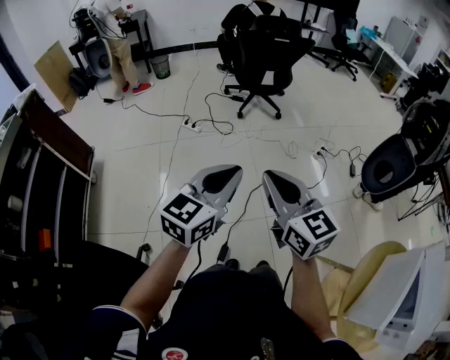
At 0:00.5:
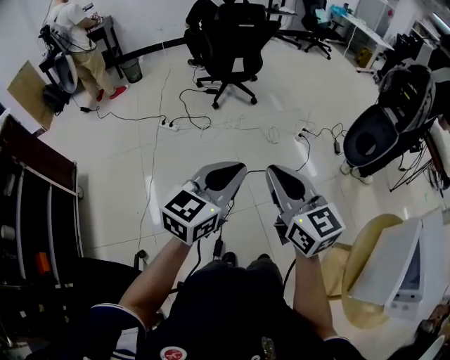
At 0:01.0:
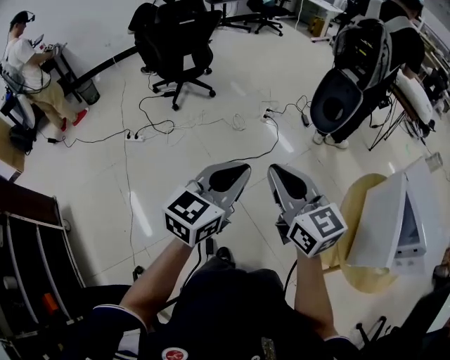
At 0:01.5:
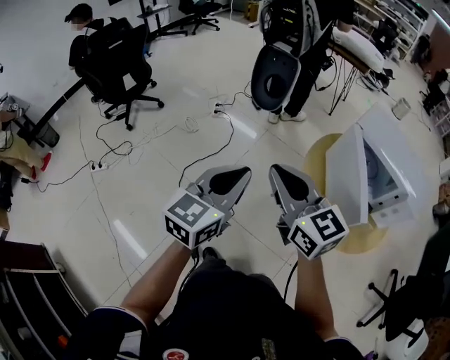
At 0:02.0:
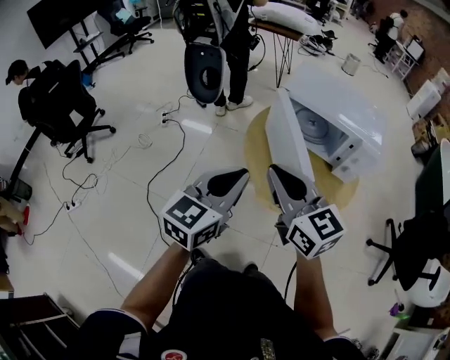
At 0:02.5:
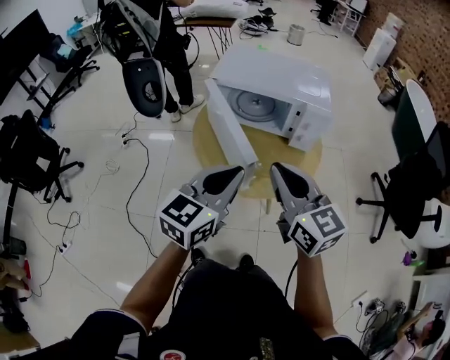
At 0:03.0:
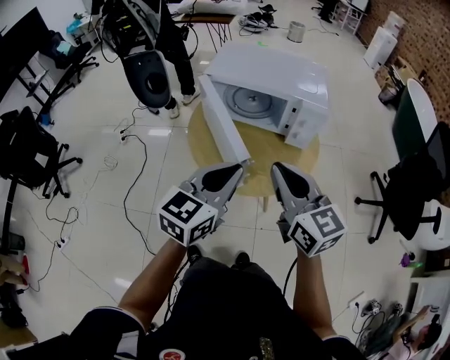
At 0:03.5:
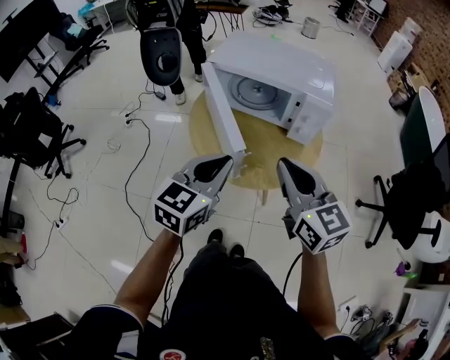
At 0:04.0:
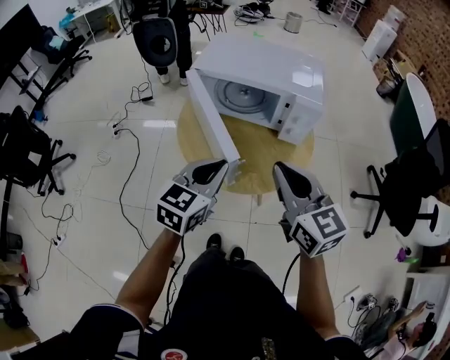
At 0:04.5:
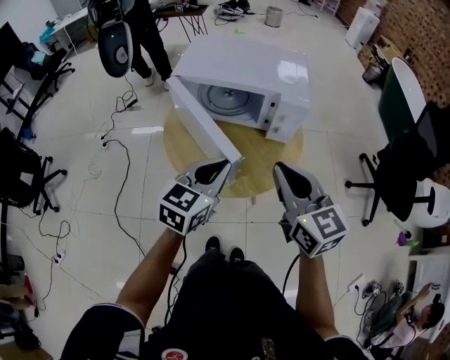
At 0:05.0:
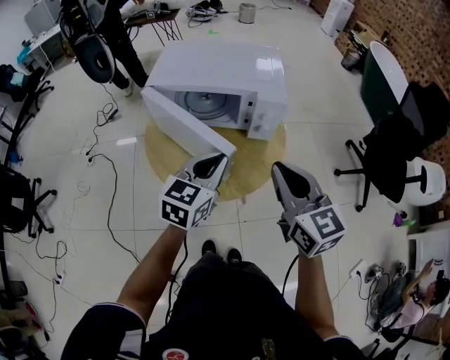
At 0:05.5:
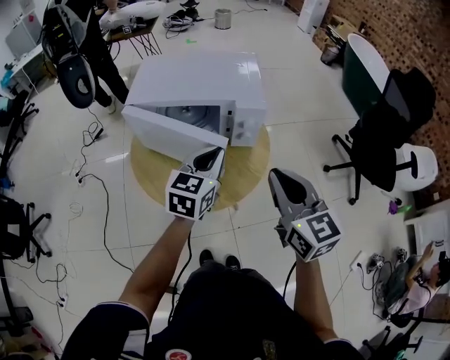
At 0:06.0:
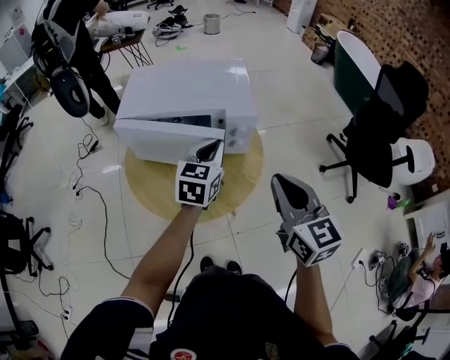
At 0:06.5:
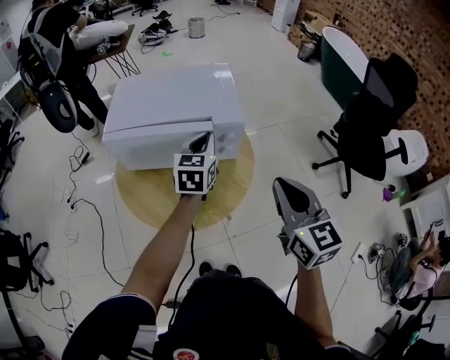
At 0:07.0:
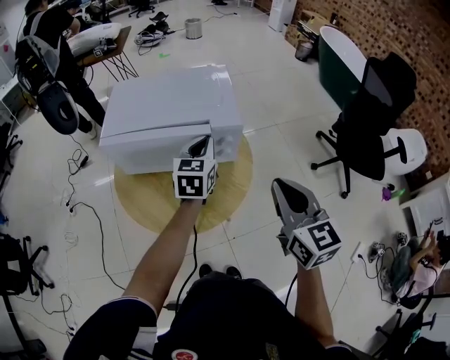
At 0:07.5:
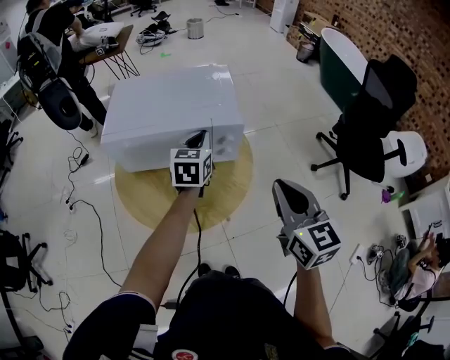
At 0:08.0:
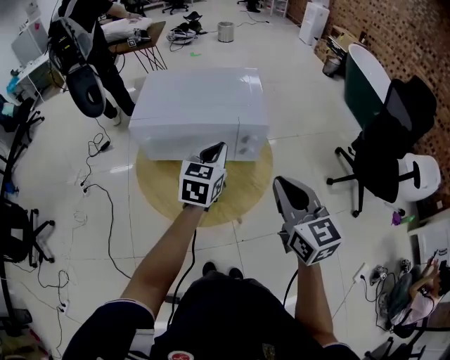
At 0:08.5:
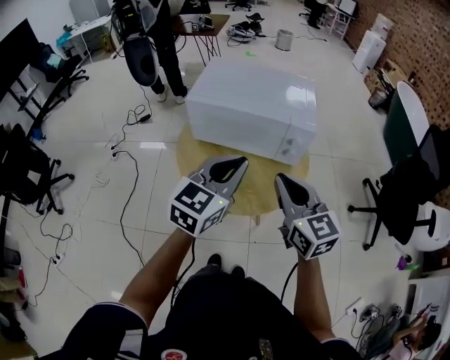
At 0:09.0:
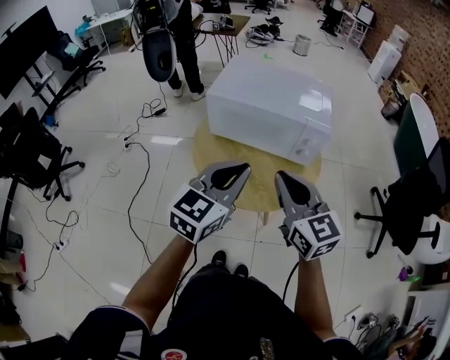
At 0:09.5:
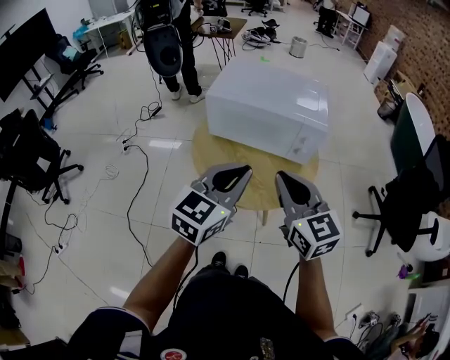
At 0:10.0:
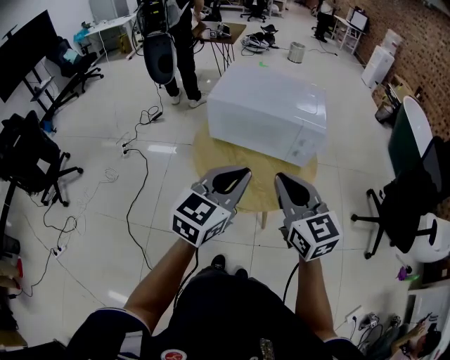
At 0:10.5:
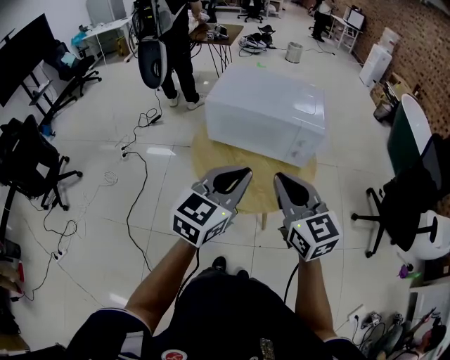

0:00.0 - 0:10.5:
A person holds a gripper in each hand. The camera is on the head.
0:00.0 - 0:02.0: Both grippers are carried approximately 50 cm. The left gripper swivels roughly 60 degrees; the right gripper rotates about 60 degrees.
0:02.0 - 0:04.0: The right gripper heads to the right, covering about 20 cm; the left gripper moves to the right and downward, some 15 cm.
0:04.0 - 0:06.5: The right gripper shifts some 15 cm to the right, and swivels approximately 30 degrees. Meanwhile the left gripper heads forward and to the right, covering some 25 cm.
0:06.5 - 0:08.5: The left gripper is displaced backward, upward and to the left by some 20 cm; the right gripper moves to the left, approximately 15 cm, and swivels roughly 20 degrees.
0:08.5 - 0:10.5: The left gripper heads backward, covering some 5 cm, while the right gripper ends up approximately 5 cm from where it was.

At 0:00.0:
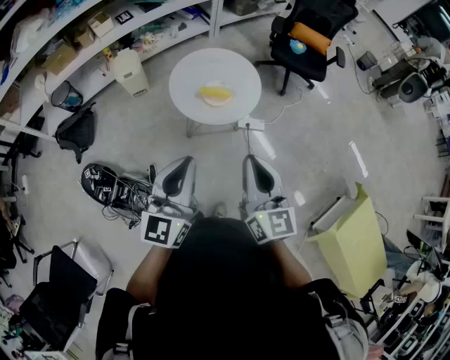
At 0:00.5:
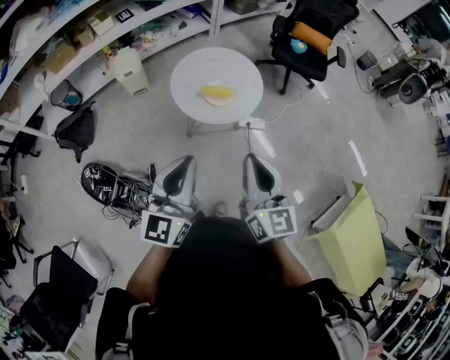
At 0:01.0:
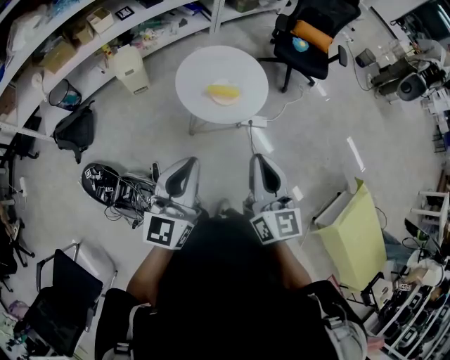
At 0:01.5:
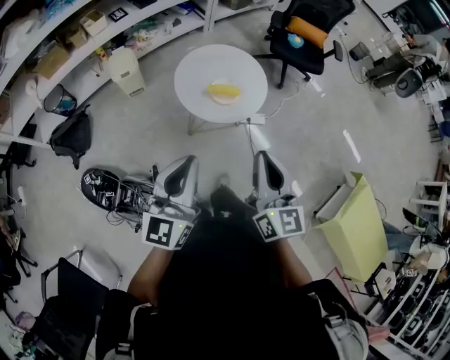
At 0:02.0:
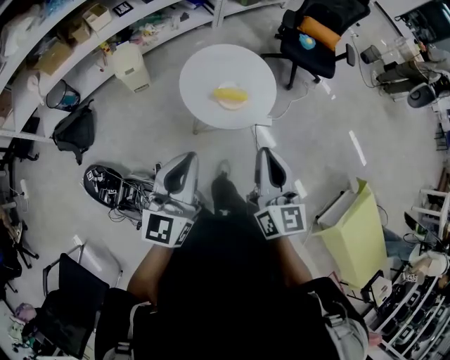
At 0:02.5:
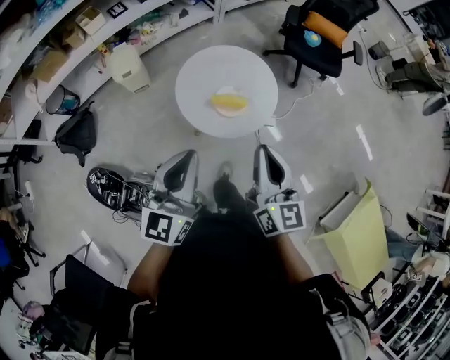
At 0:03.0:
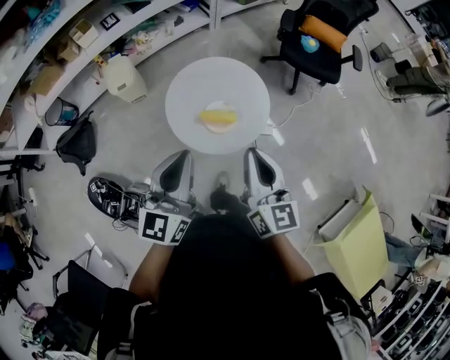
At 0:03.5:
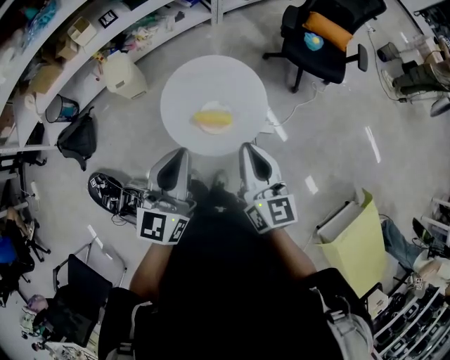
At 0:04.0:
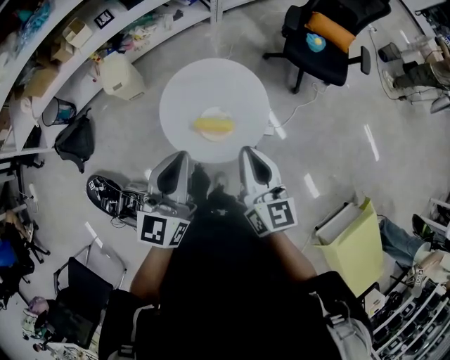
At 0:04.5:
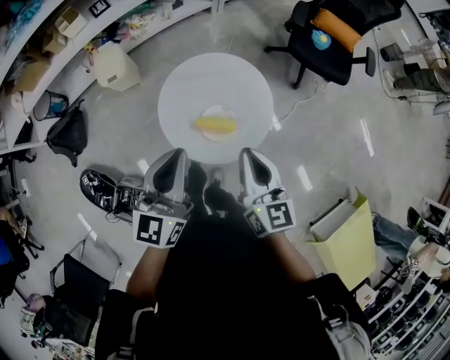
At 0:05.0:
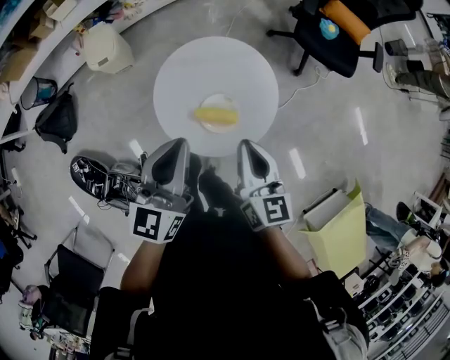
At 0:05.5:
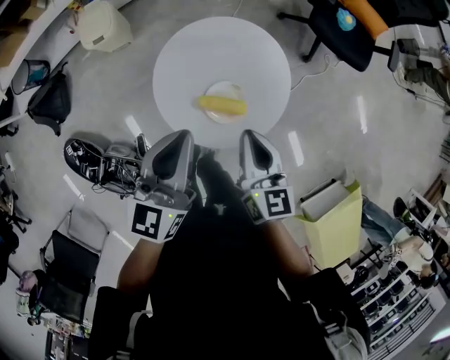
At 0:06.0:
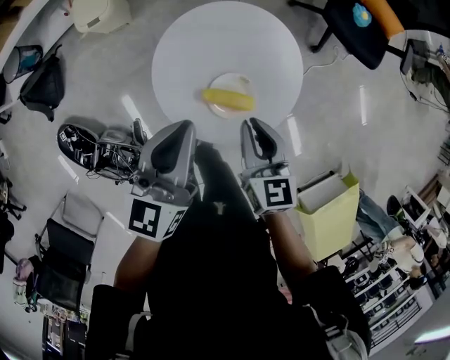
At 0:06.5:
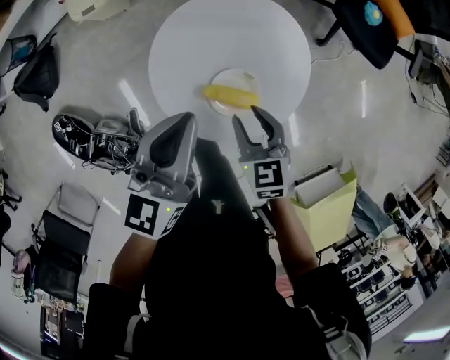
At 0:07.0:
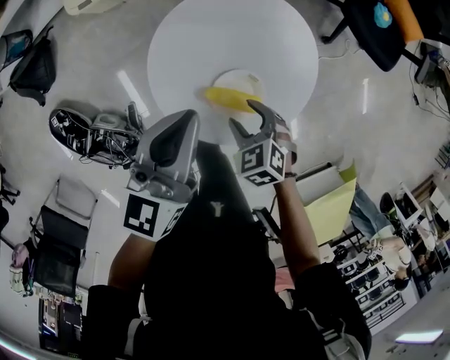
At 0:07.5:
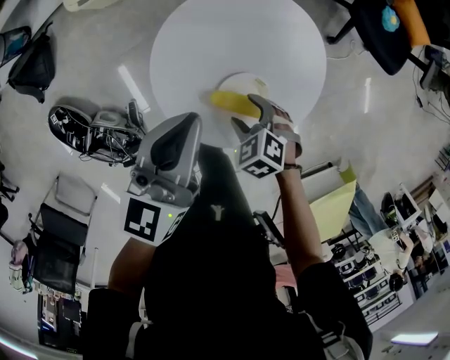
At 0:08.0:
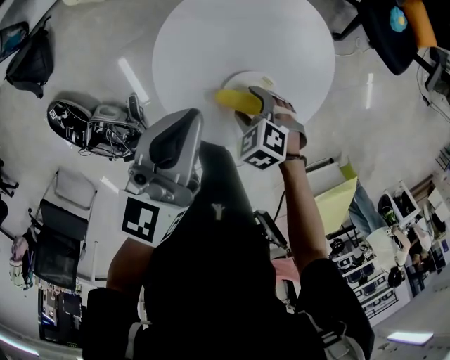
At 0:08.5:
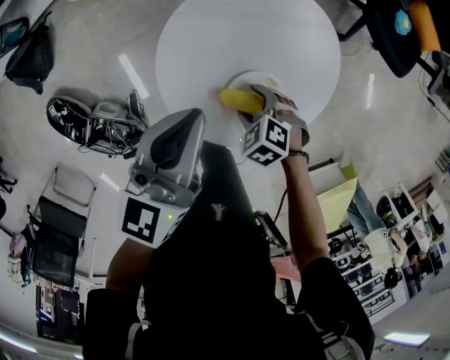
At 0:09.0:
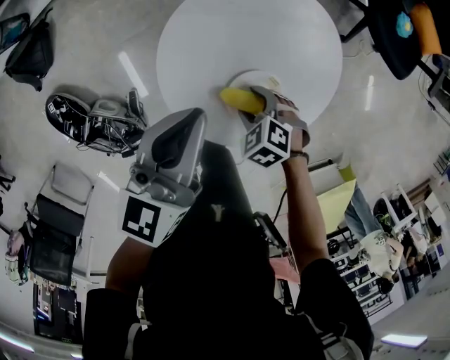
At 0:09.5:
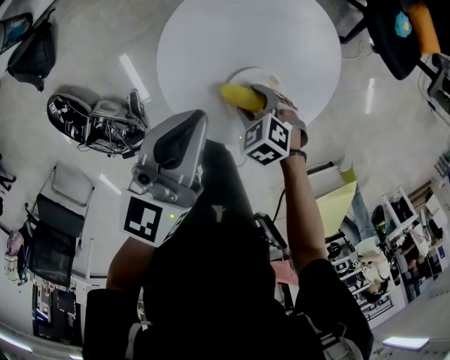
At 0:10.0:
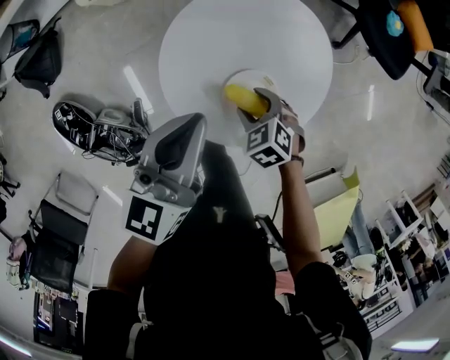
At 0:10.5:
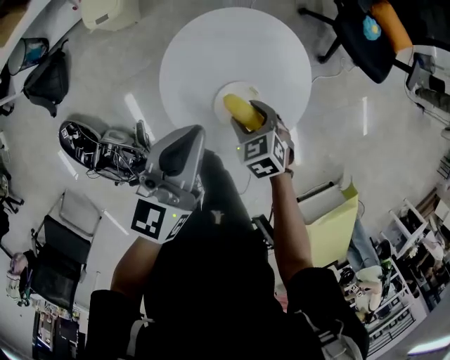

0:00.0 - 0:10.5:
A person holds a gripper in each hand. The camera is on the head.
0:00.0 - 0:02.0: The right gripper goes some 10 cm forward and to the left; the left gripper heads to the left and forward, covering approximately 10 cm.
0:02.0 - 0:04.0: The left gripper heads forward and to the right, covering roughly 25 cm. The right gripper is displaced forward by about 20 cm.
0:04.0 - 0:06.5: The left gripper moves downward and forward, some 20 cm, while the right gripper heads downward, covering approximately 25 cm, tilts its fingers about 40 degrees downward, and opens.
0:06.5 - 0:08.5: The left gripper moves downward, some 5 cm. Meanwhile the right gripper is displaced downward by some 15 cm, points its fingers about 30 degrees further downward, and opens.
0:08.5 - 0:10.5: Both grippers travel together upward, some 10 cm. The right gripper turns by roughly 30 degrees.

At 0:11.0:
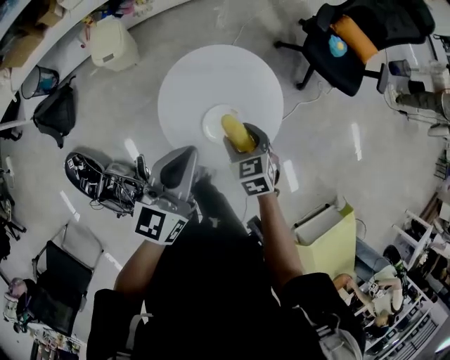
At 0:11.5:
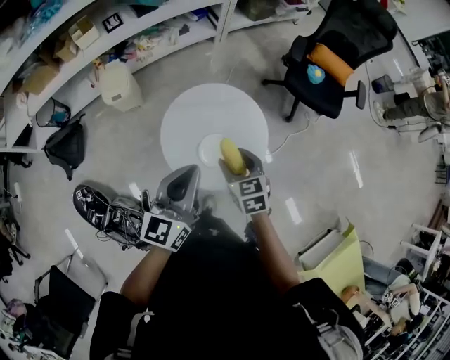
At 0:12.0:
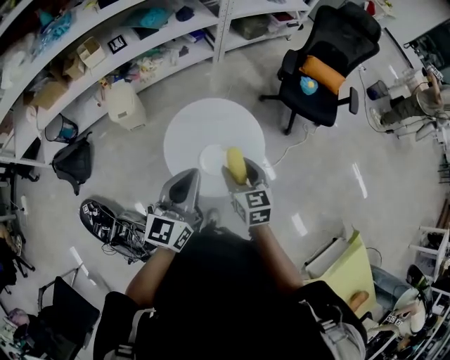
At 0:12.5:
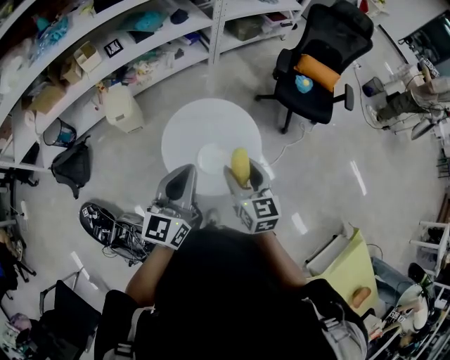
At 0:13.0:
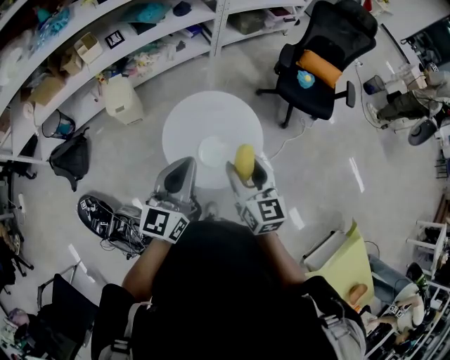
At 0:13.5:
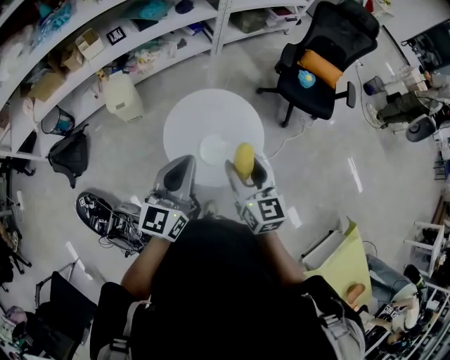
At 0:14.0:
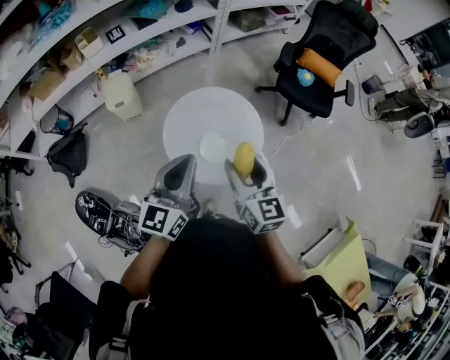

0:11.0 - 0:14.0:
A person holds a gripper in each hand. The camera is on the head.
0:11.0 - 0:12.5: The right gripper shifts some 20 cm upward, and points its fingers some 30 degrees further upward. Meanwhile the left gripper travels upward by some 10 cm.
0:12.5 - 0:14.0: The grippers stay close to where they were, moving slightly.

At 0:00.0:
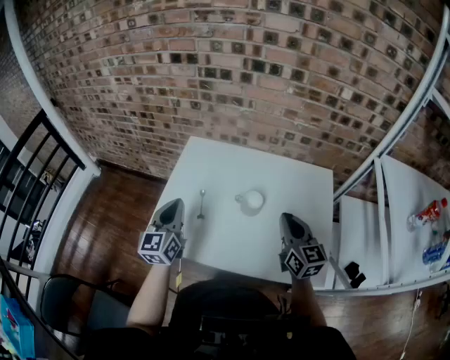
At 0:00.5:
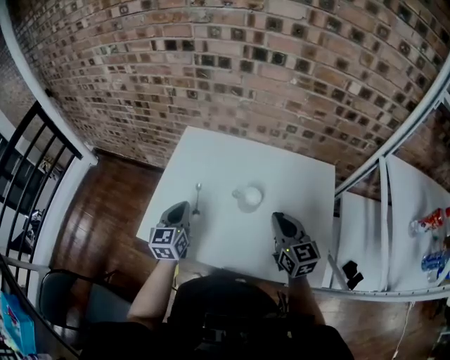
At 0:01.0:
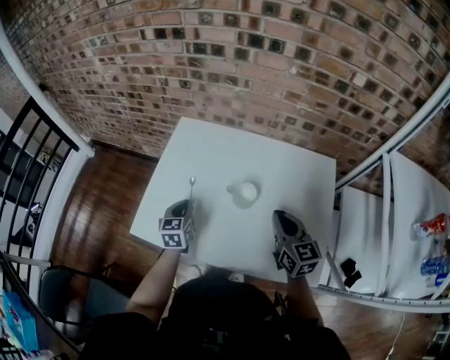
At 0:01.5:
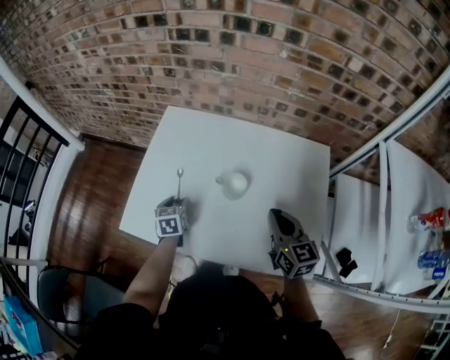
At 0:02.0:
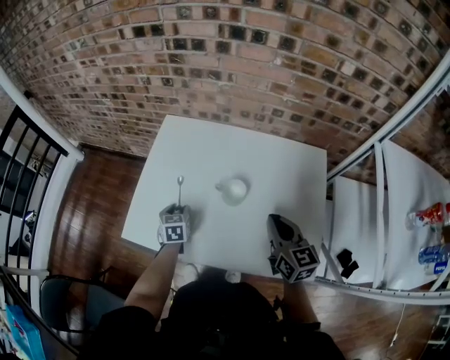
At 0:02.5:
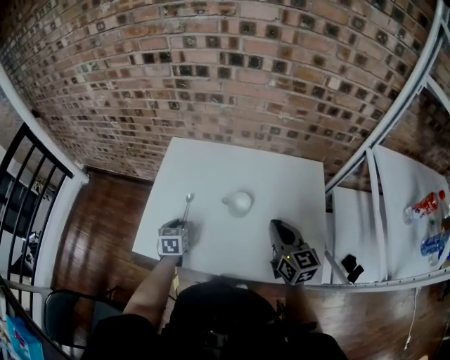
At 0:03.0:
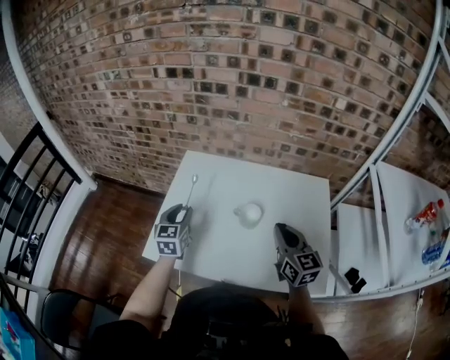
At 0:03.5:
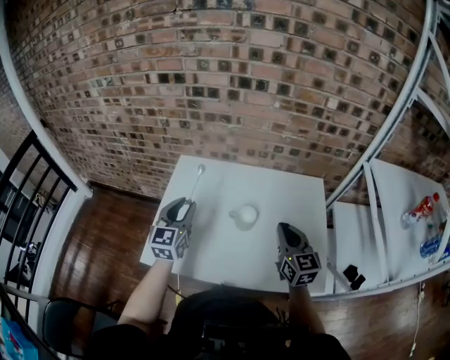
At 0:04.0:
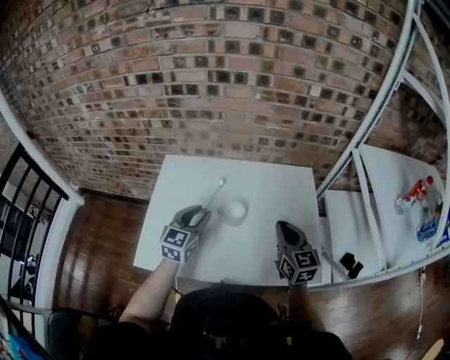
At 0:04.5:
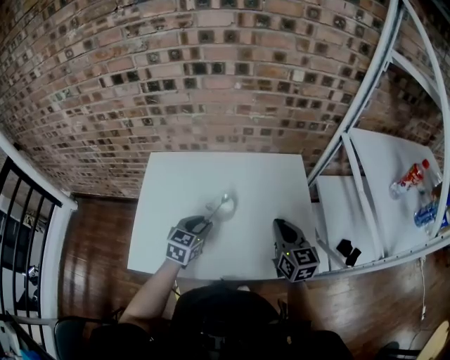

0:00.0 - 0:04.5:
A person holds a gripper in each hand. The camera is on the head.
0:00.0 - 0:02.0: The left gripper travels downward by some 25 cm, angles its fingers downward, by approximately 40 degrees, and opens up. Meanwhile the right gripper shifts by some 5 cm.
0:02.0 - 0:04.5: The left gripper moves some 20 cm, and turns by approximately 40 degrees; the right gripper changes place by some 5 cm.
